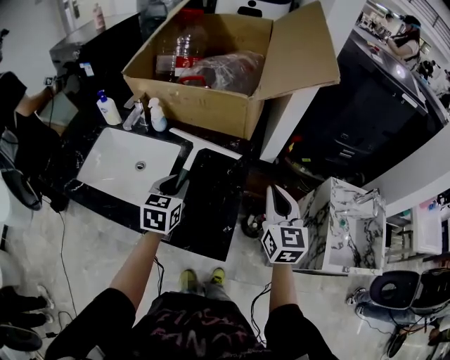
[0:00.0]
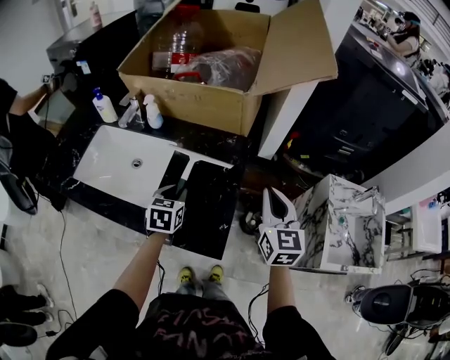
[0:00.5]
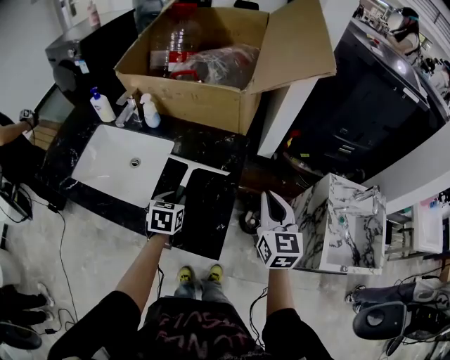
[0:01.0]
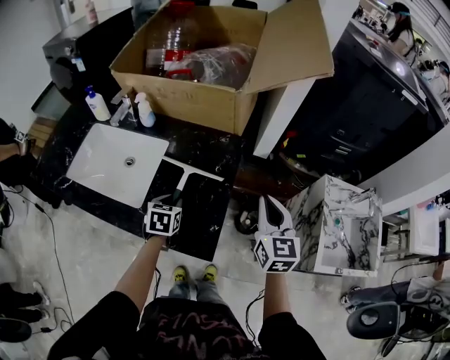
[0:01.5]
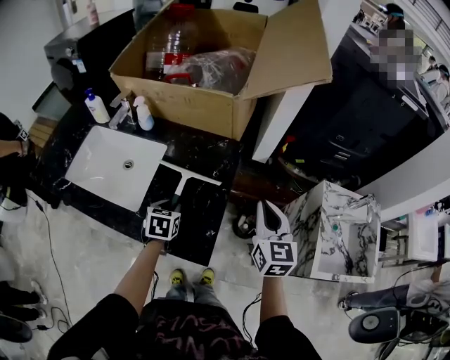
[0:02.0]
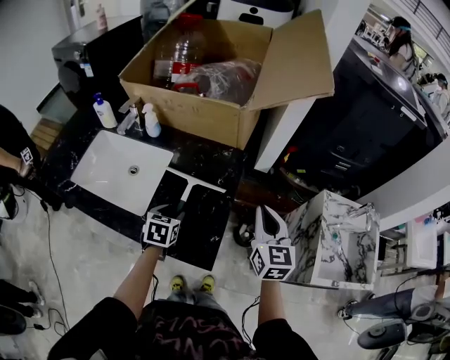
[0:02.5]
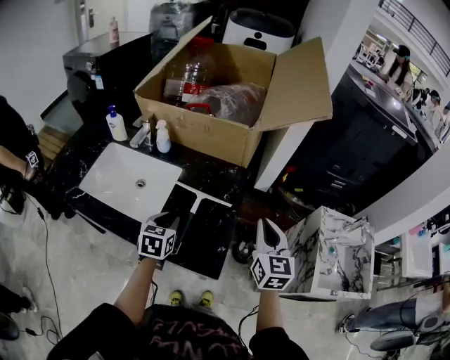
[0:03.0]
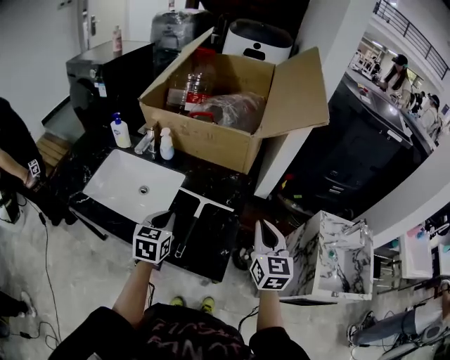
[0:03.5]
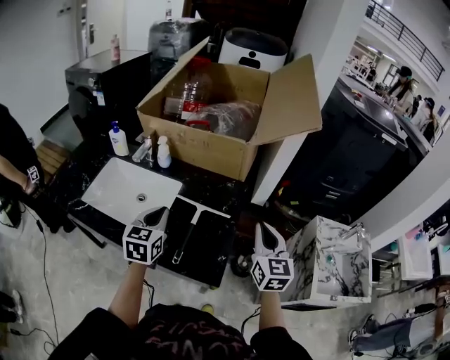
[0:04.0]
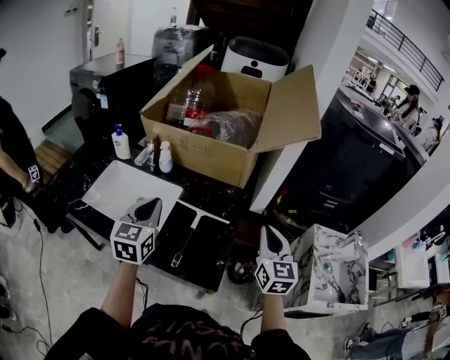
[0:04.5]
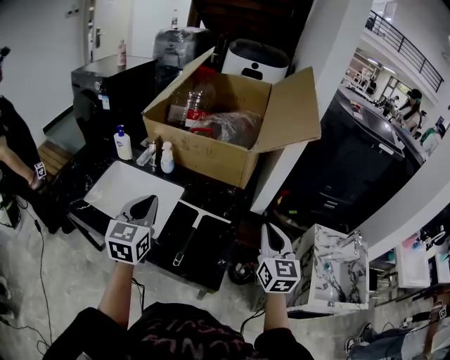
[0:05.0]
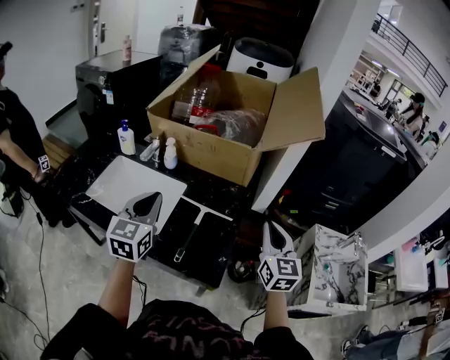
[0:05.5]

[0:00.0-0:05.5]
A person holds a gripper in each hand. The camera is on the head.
0:00.0 to 0:02.0: The right gripper changes place by roughly 5 cm; the left gripper goes some 15 cm downward, and rotates about 20 degrees.
0:02.0 to 0:03.5: The left gripper is displaced upward and to the left by roughly 15 cm, swivels some 20 degrees, and closes up. Meanwhile the right gripper is displaced to the left and upward by approximately 10 cm.
0:03.5 to 0:05.5: The left gripper travels upward by about 15 cm, and turns by approximately 20 degrees.

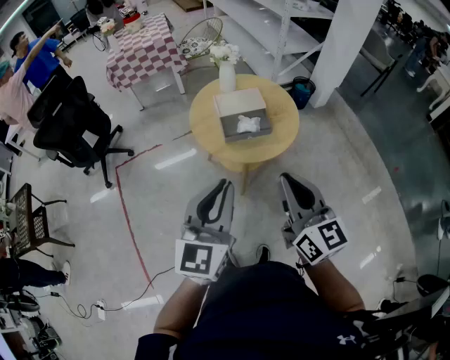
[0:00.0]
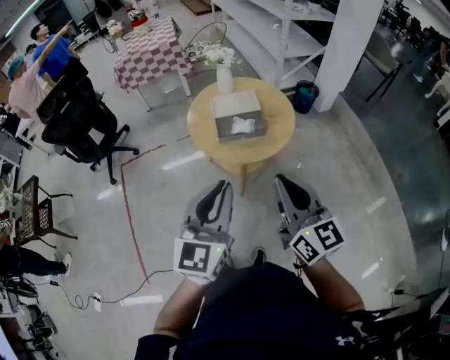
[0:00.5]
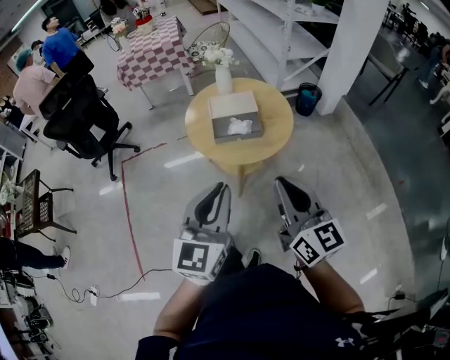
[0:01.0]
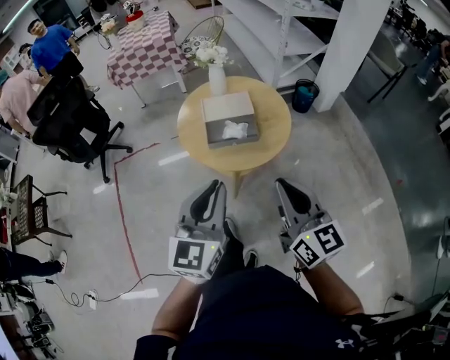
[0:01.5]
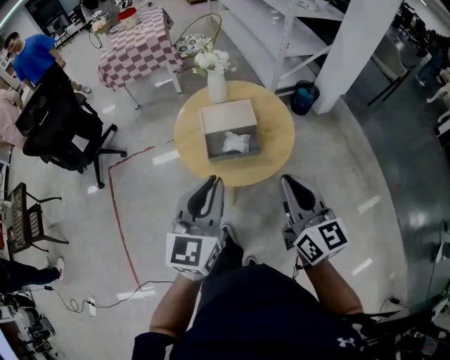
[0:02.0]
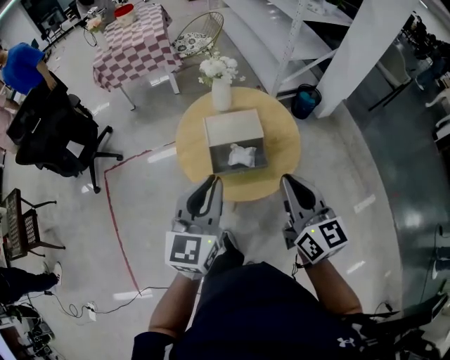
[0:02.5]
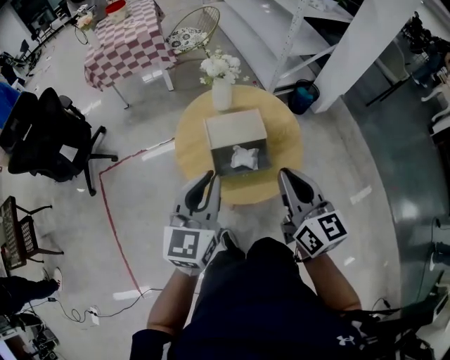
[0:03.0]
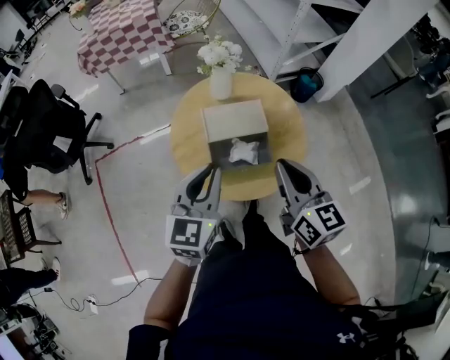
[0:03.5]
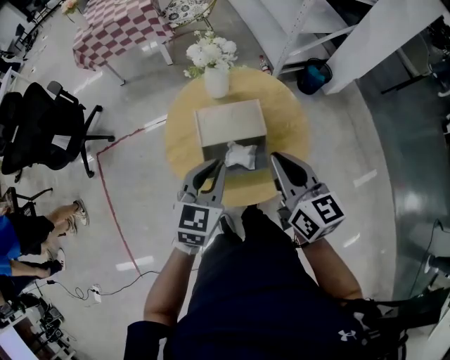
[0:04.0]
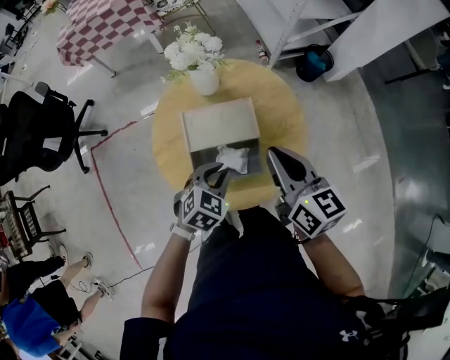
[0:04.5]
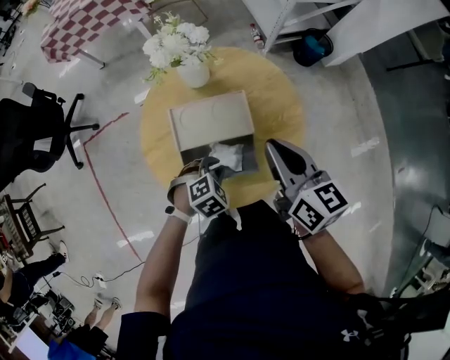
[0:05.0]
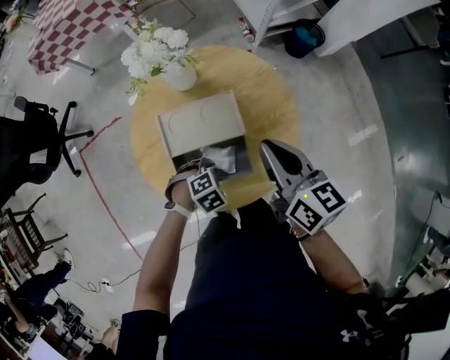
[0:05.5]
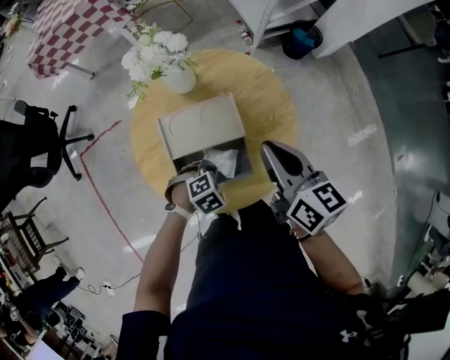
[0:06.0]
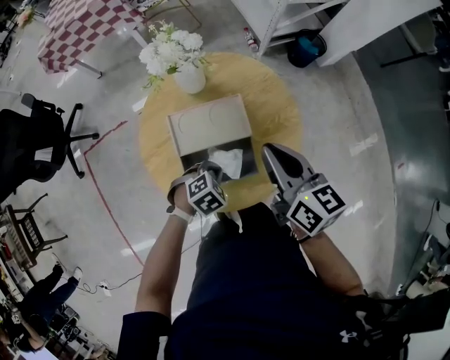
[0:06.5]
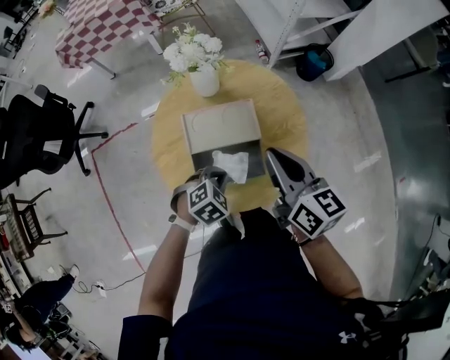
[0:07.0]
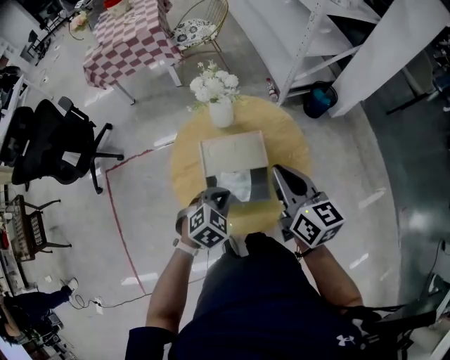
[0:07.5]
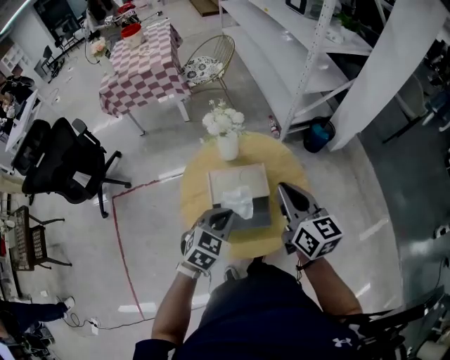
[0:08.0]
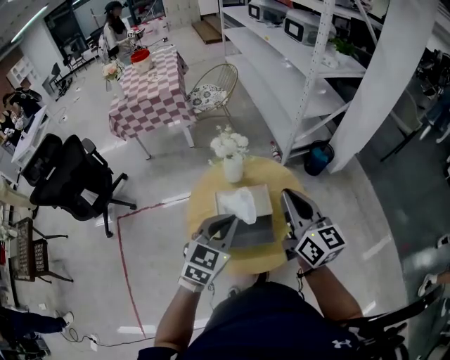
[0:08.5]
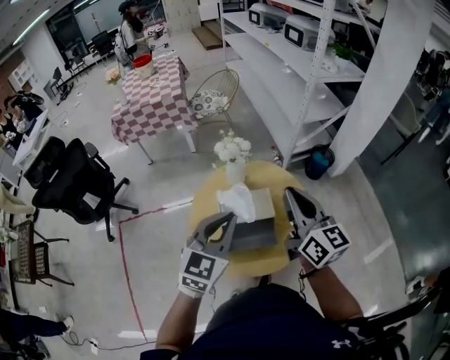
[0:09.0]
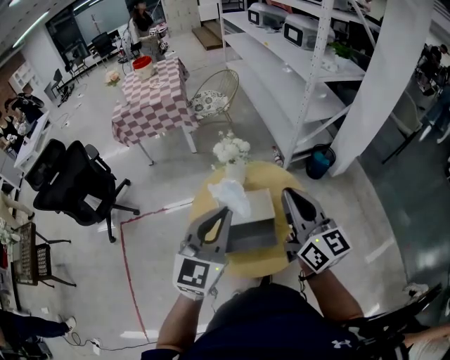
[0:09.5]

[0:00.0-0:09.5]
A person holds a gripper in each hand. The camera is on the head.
0:00.0 to 0:02.0: Both grippers travel together forward and to the right, roughly 15 cm.
0:02.0 to 0:04.0: The left gripper travels forward and downward by approximately 25 cm, and swivels roughly 20 degrees. The right gripper moves forward, about 25 cm.
0:04.0 to 0:05.5: The right gripper shifts by some 15 cm; the left gripper heads downward, covering approximately 25 cm, and points its fingers approximately 50 degrees further downward.
0:05.5 to 0:07.5: The right gripper moves upward, about 5 cm. Meanwhile the left gripper moves upward, about 15 cm, and rotates roughly 30 degrees.
0:07.5 to 0:09.5: The left gripper is displaced upward by some 30 cm, and tips its fingers upward by roughly 50 degrees; the right gripper shifts roughly 15 cm upward, and changes its angle by roughly 20 degrees.

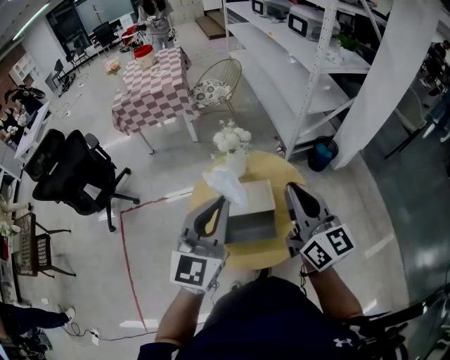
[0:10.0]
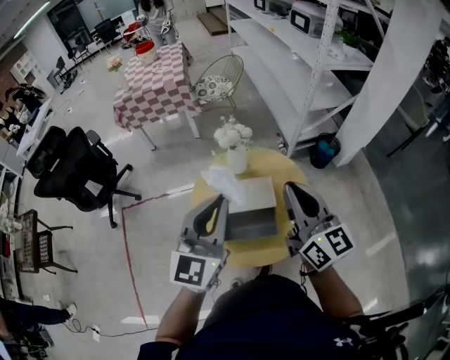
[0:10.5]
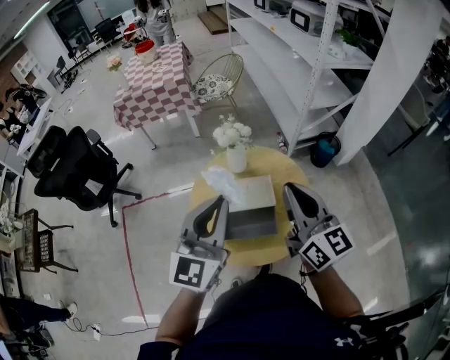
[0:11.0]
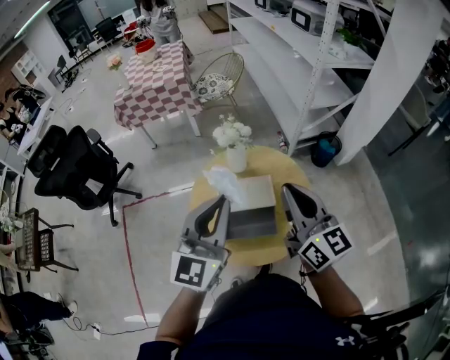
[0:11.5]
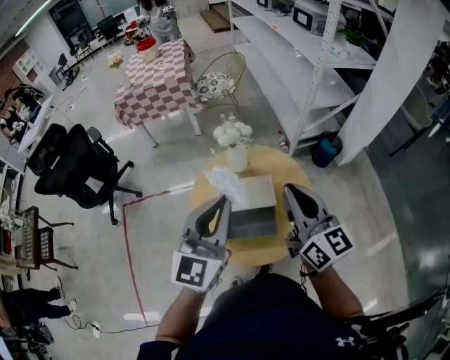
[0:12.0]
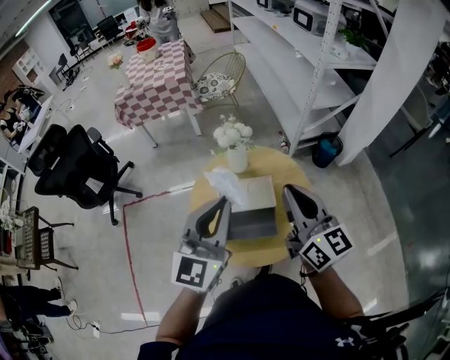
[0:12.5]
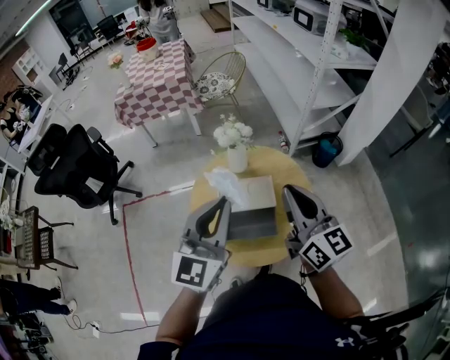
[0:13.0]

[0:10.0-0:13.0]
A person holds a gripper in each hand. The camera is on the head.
0:10.0 to 0:11.5: Neither gripper changes place.
0:11.5 to 0:13.0: Both grippers stay about where they are.

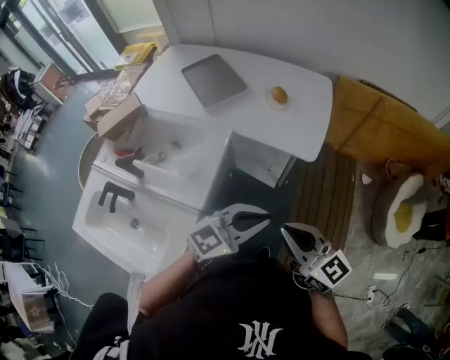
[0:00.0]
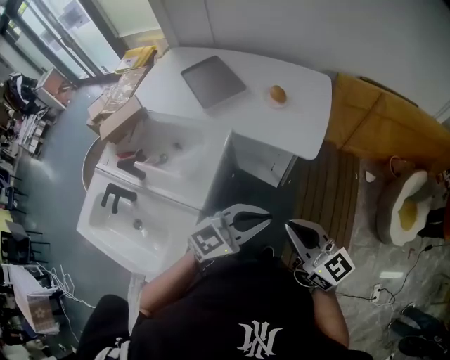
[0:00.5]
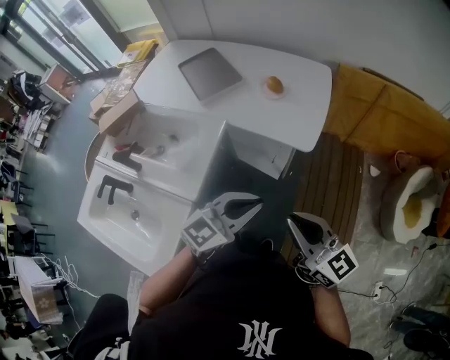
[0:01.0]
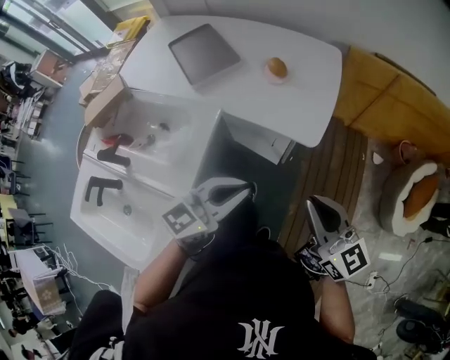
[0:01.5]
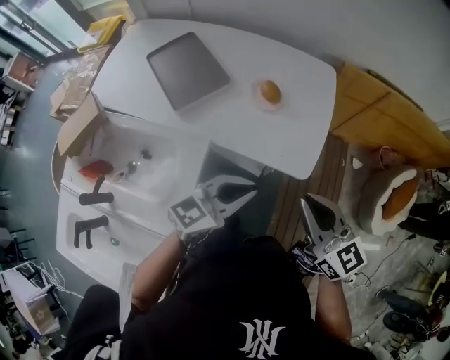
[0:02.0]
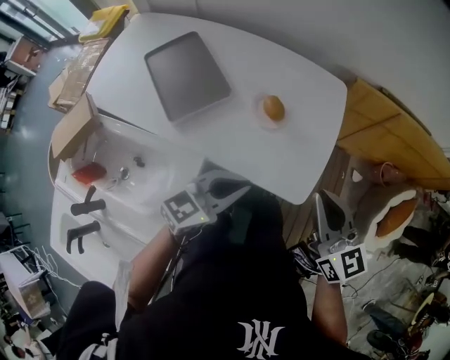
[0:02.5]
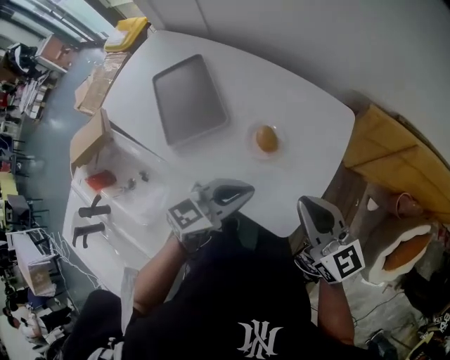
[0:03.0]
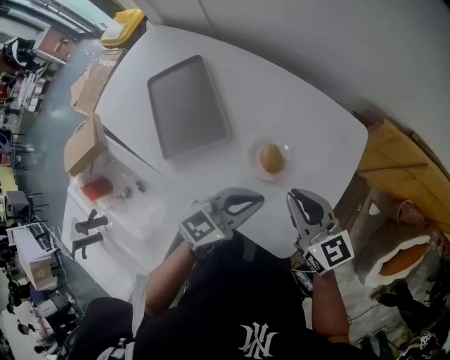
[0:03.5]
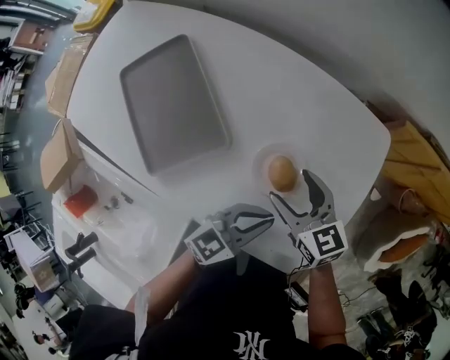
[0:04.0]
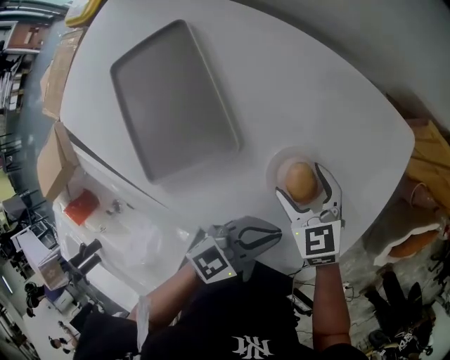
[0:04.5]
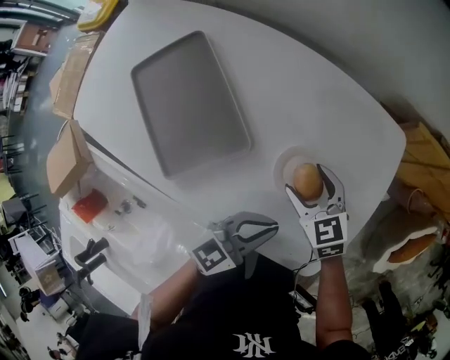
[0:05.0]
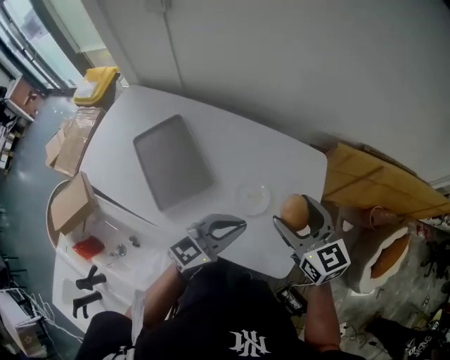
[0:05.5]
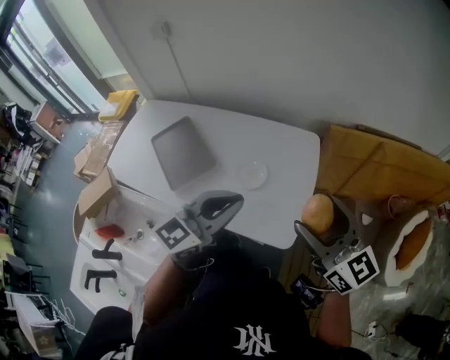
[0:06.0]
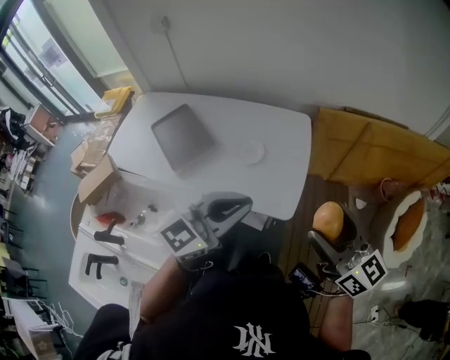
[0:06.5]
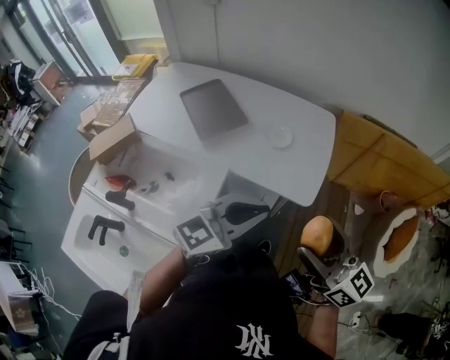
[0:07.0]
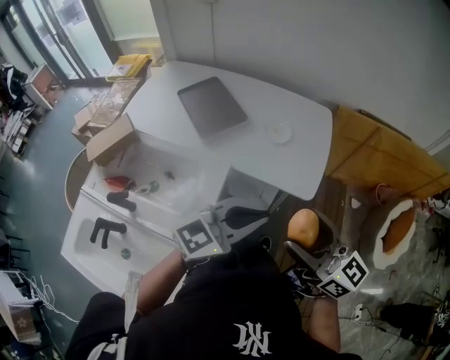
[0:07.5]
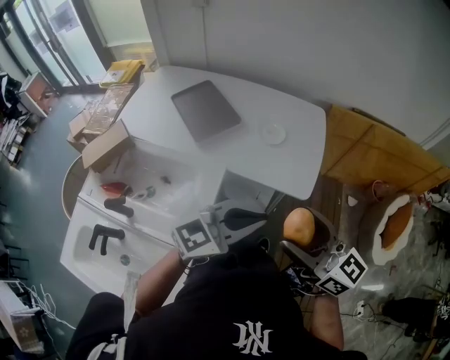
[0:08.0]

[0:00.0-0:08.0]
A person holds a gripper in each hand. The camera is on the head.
0:00.0 to 0:02.0: Both grippers move forward, about 25 cm.
0:02.0 to 0:04.0: Both grippers move forward and downward, some 40 cm. The right gripper swivels approximately 20 degrees, and opens.
0:04.0 to 0:06.0: The left gripper shifts about 35 cm upward and backward, and turns by roughly 20 degrees. The right gripper goes some 50 cm upward, backward and to the right, and tips its fingers upward by about 30 degrees.
0:06.0 to 0:08.0: The right gripper travels backward and to the left by roughly 35 cm. The left gripper shifts some 30 cm backward.
